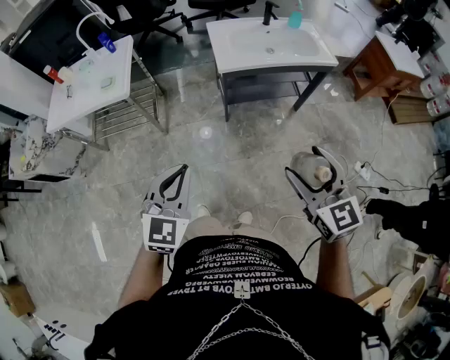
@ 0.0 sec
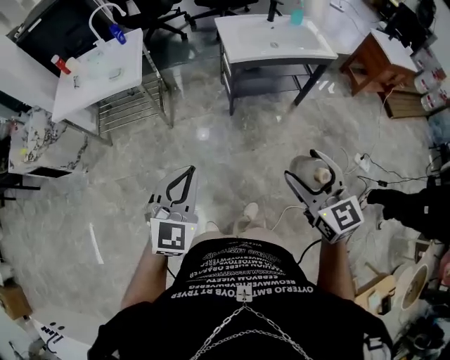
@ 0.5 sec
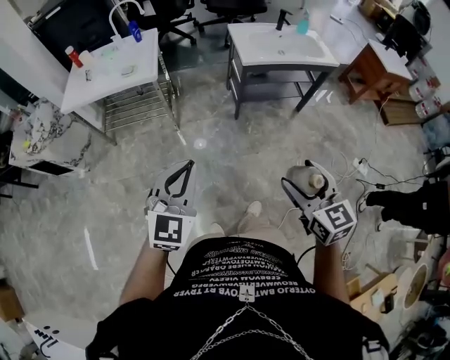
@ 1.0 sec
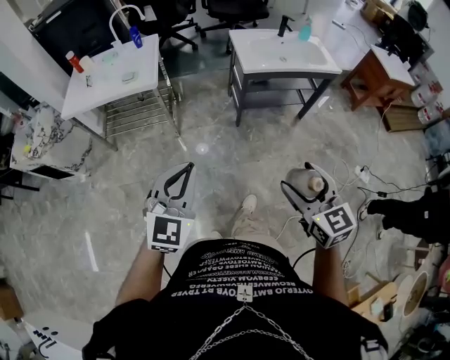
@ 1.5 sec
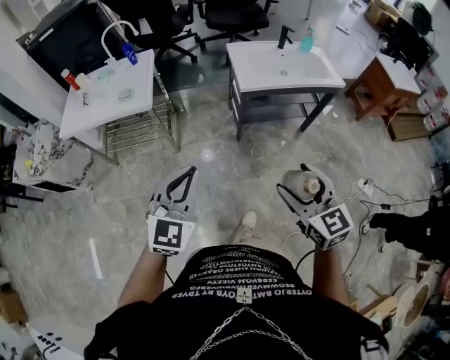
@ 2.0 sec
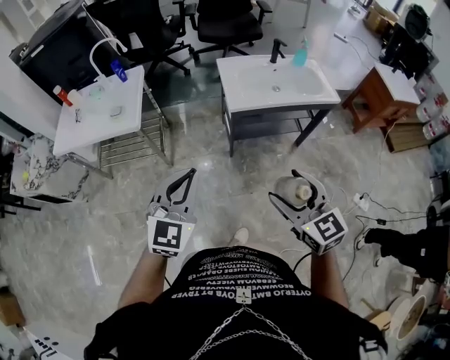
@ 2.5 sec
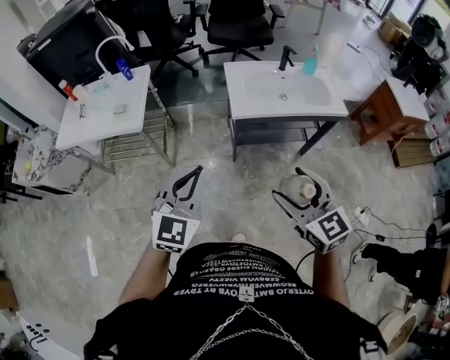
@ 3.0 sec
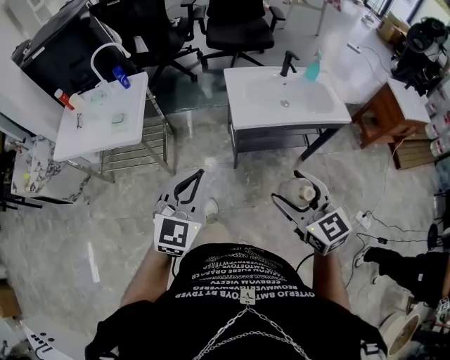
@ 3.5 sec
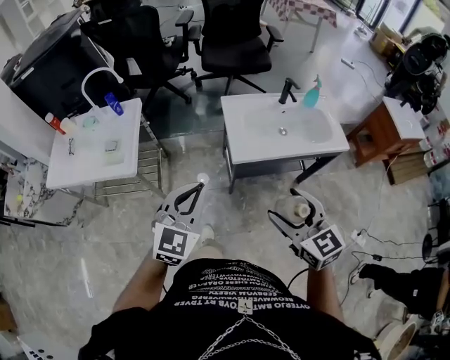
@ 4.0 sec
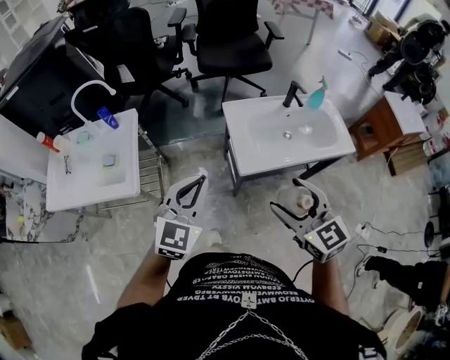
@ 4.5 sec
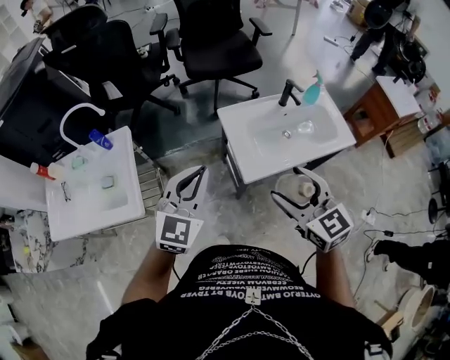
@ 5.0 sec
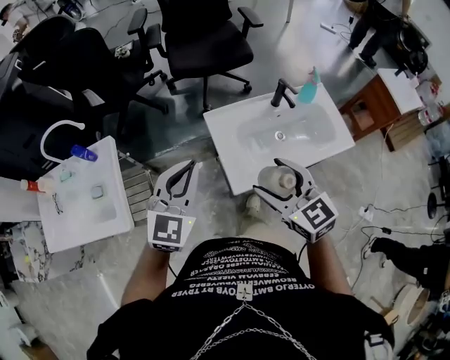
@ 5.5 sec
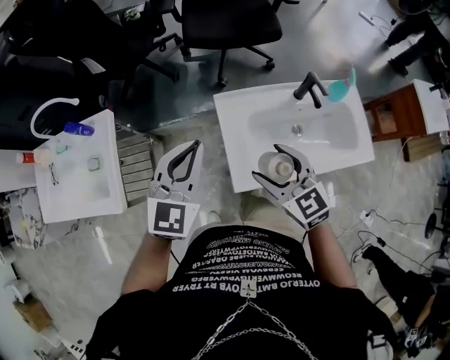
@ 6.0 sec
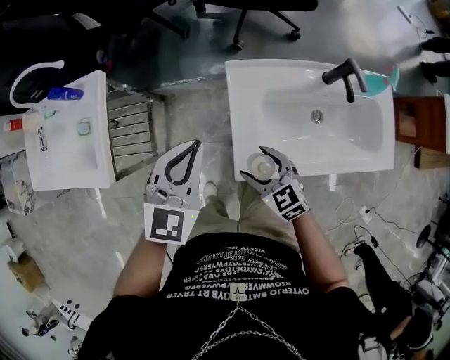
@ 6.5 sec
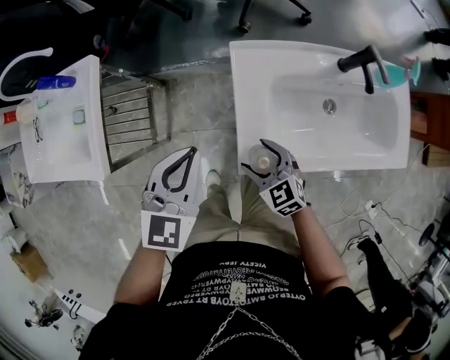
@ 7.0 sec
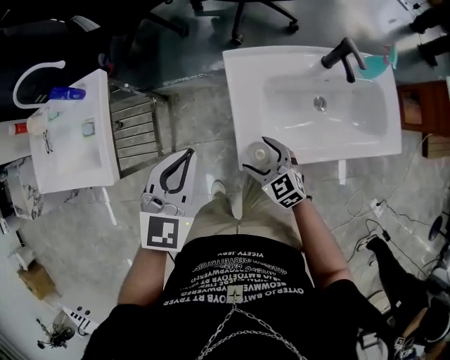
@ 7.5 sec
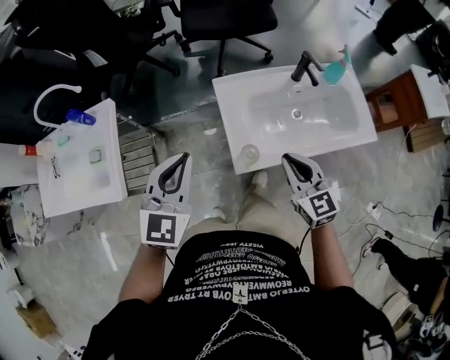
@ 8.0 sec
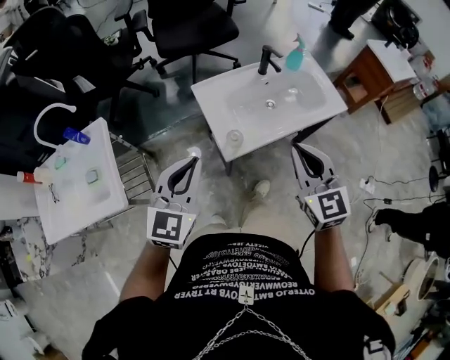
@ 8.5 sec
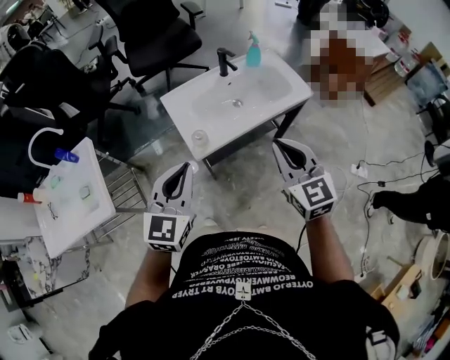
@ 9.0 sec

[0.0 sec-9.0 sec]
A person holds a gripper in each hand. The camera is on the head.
0.0 sec to 2.0 sec: The two grippers go some 10 cm to the left.
2.0 sec to 4.5 sec: The pair of grippers is taken forward, about 40 cm.
4.5 sec to 7.0 sec: The left gripper moves forward and downward, about 30 cm, and turns by about 20 degrees, while the right gripper shifts roughly 50 cm downward and forward, and rotates about 30 degrees.
7.0 sec to 9.0 sec: The right gripper heads upward, covering some 40 cm, swivels some 50 degrees, and closes its fingers; the left gripper shifts by some 35 cm, and rotates approximately 30 degrees.

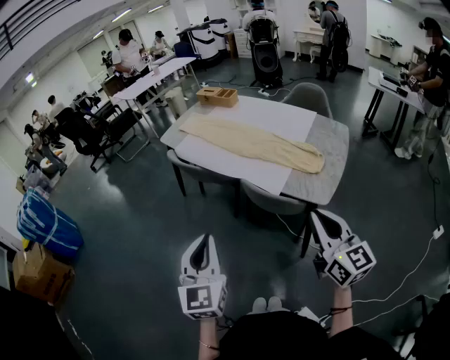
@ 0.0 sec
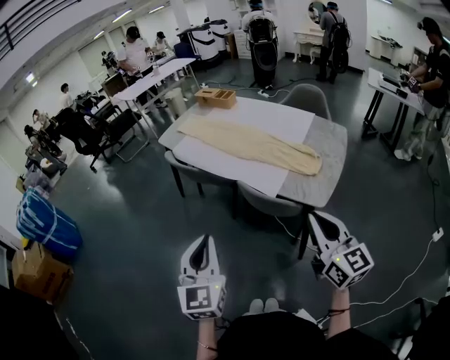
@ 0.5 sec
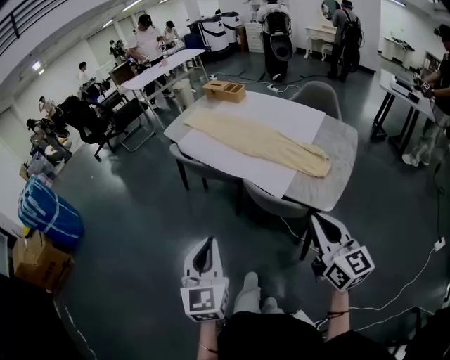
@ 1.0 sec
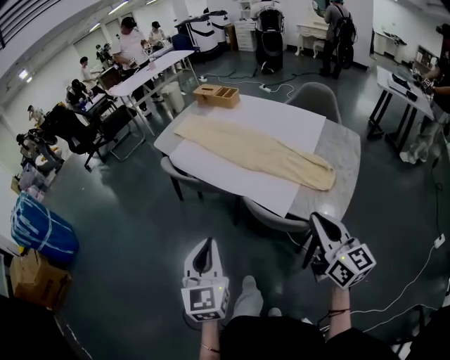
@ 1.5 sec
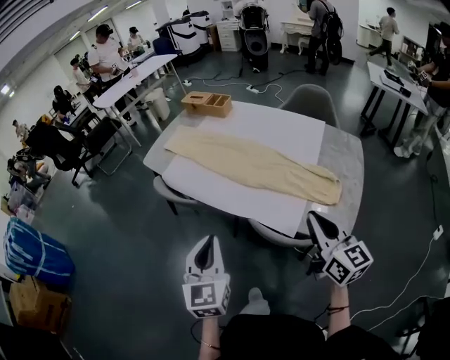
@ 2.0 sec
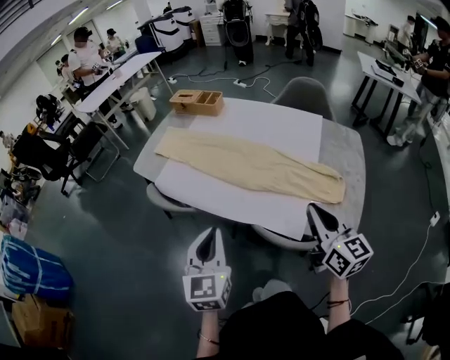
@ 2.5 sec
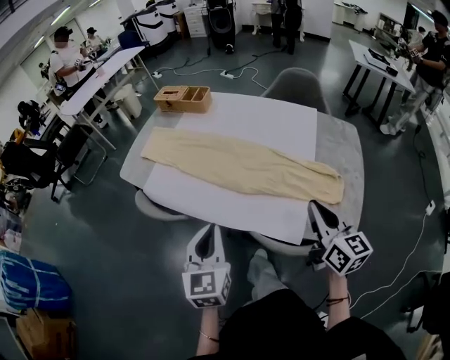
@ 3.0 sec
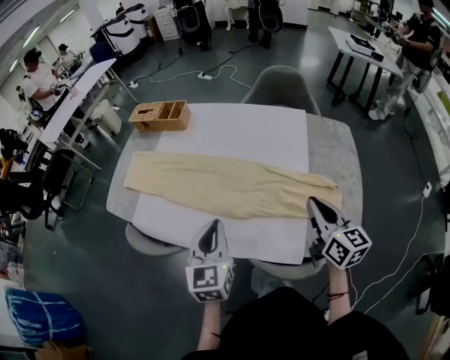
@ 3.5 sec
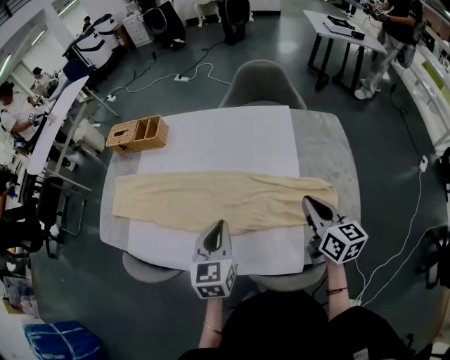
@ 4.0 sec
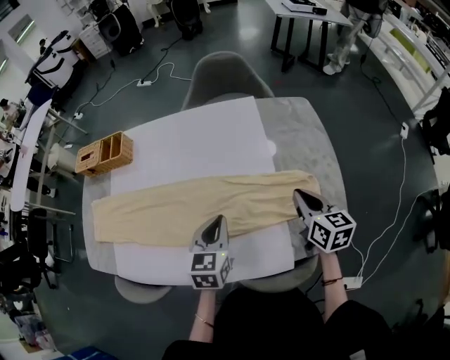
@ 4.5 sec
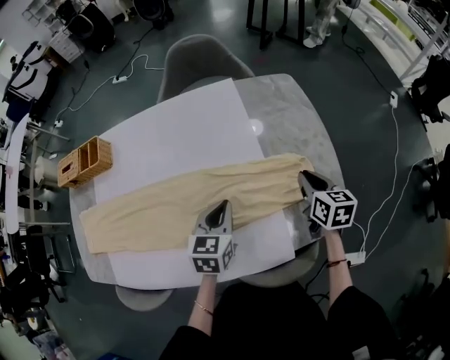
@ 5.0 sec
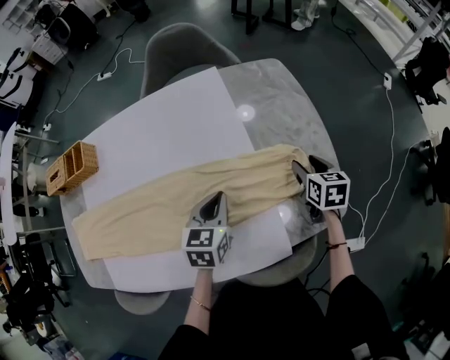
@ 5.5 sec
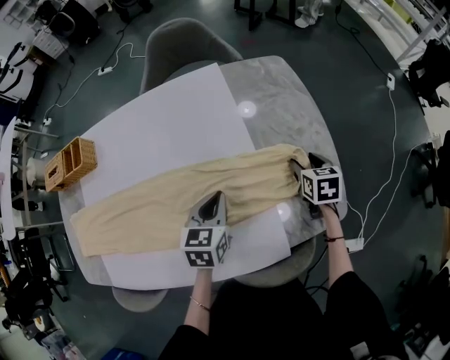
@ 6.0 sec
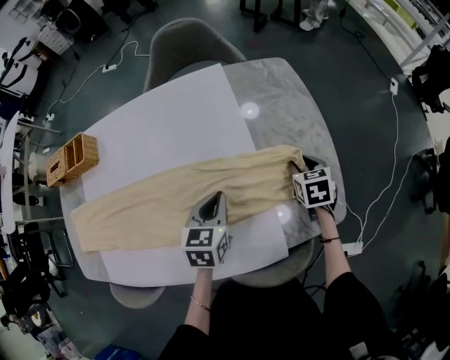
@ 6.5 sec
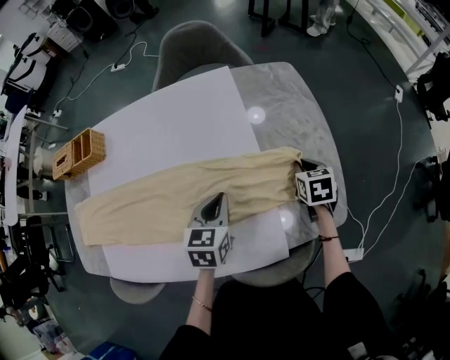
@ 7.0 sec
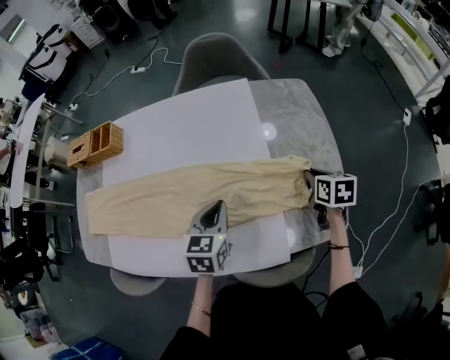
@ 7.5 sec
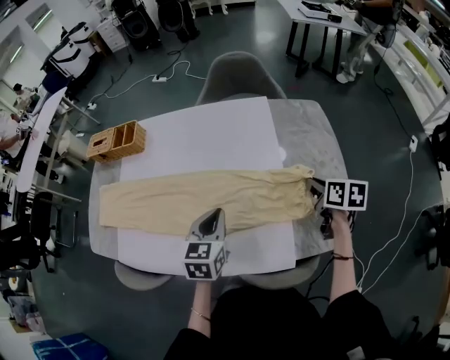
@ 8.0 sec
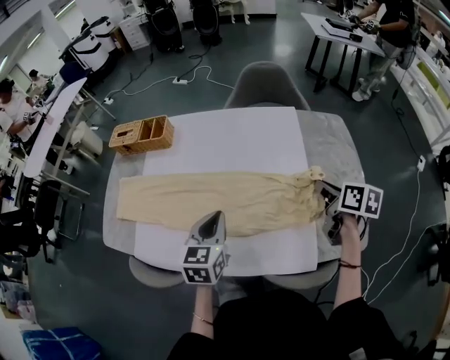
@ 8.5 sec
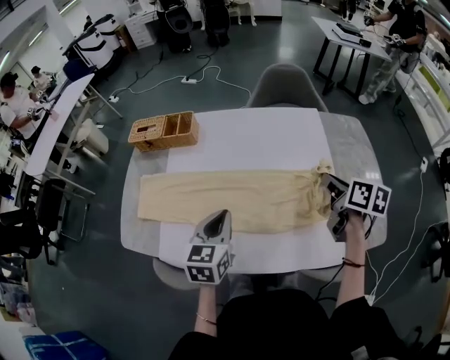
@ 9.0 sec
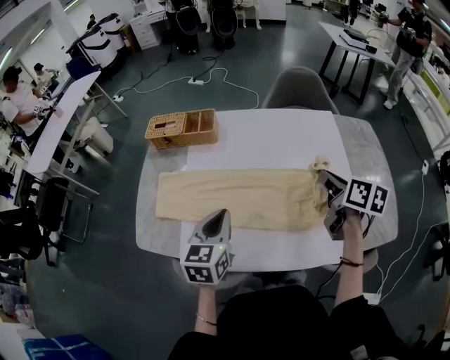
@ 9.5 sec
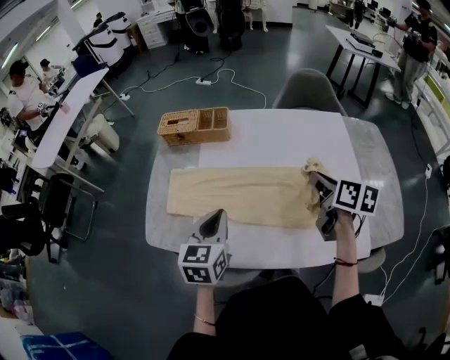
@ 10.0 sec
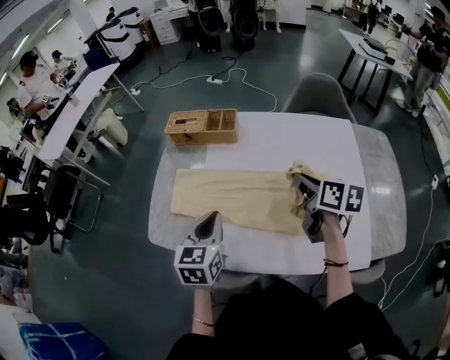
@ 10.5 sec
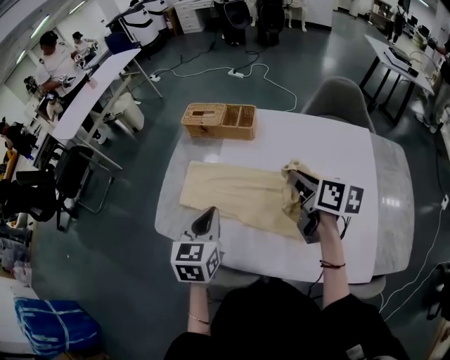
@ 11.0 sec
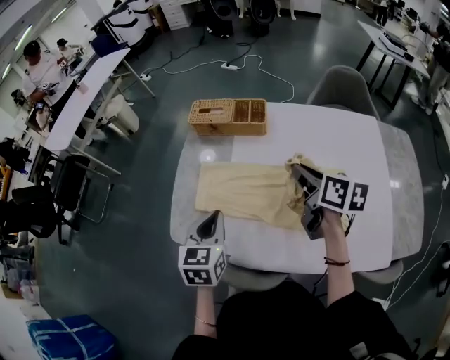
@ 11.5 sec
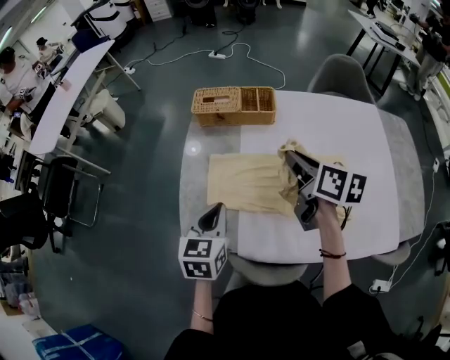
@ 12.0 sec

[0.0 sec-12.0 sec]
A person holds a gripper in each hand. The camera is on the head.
0.0 sec to 2.0 sec: Both grippers move forward, approximately 25 cm.
2.0 sec to 4.0 sec: The left gripper shifts by roughly 35 cm, and turns by some 30 degrees; the right gripper shifts by roughly 30 cm, and turns by approximately 30 degrees.
4.0 sec to 6.0 sec: The left gripper shifts by about 20 cm, and changes its angle by approximately 30 degrees, while the right gripper is displaced downward by roughly 20 cm, tilts its fingers roughly 40 degrees downward, and opens.
6.0 sec to 8.0 sec: The right gripper heads upward and to the left, covering approximately 15 cm, turns by approximately 20 degrees, and closes up, while the left gripper travels upward, to the left and backward by about 10 cm.
8.0 sec to 10.0 sec: The two grippers go approximately 35 cm to the left.
10.0 sec to 12.0 sec: The right gripper travels to the left and forward by approximately 25 cm; the left gripper travels to the left by roughly 20 cm.

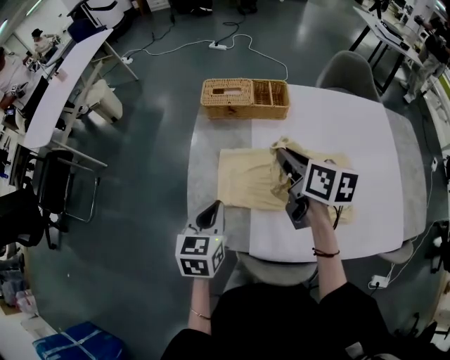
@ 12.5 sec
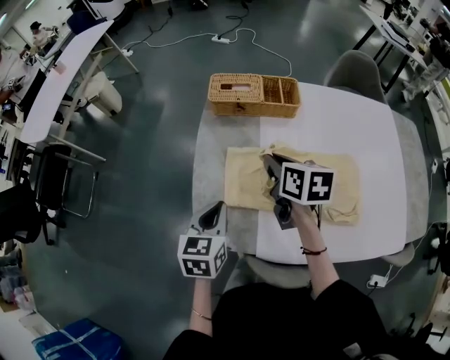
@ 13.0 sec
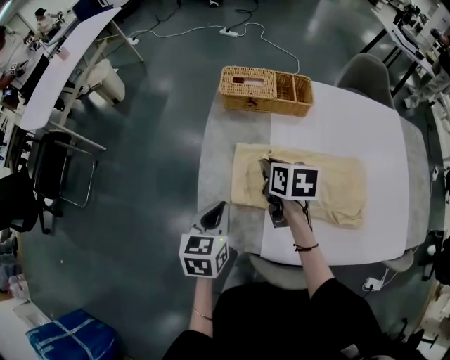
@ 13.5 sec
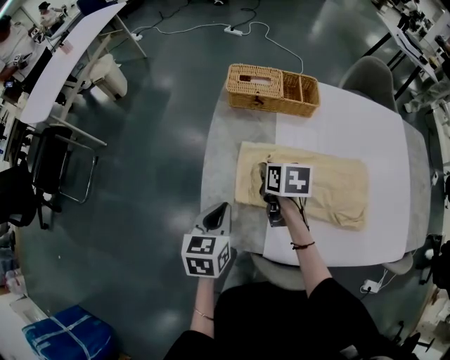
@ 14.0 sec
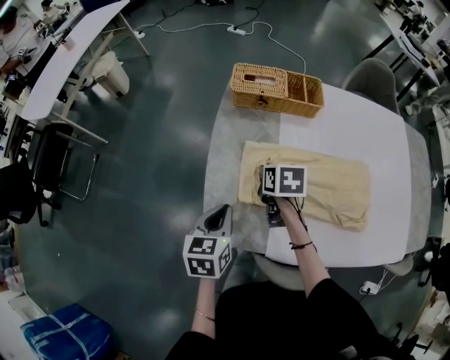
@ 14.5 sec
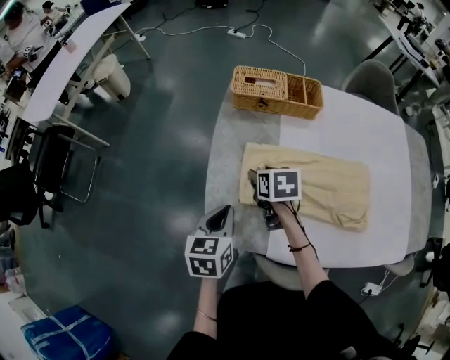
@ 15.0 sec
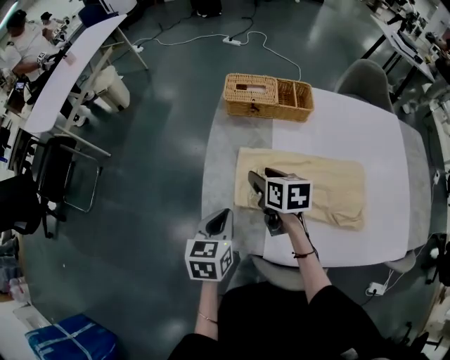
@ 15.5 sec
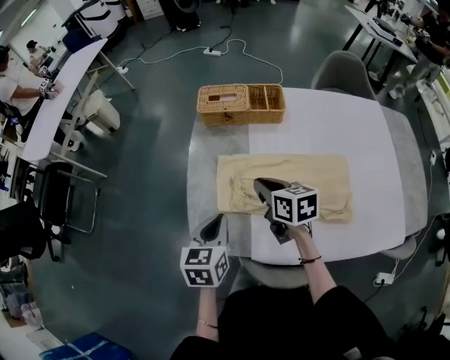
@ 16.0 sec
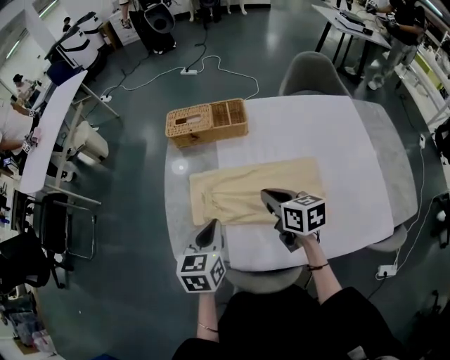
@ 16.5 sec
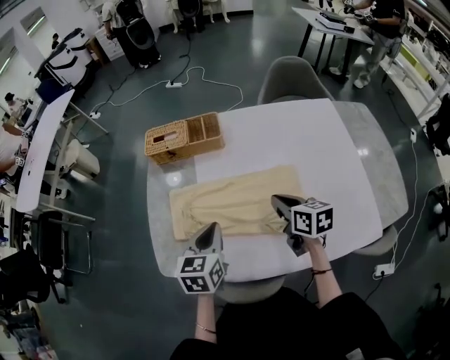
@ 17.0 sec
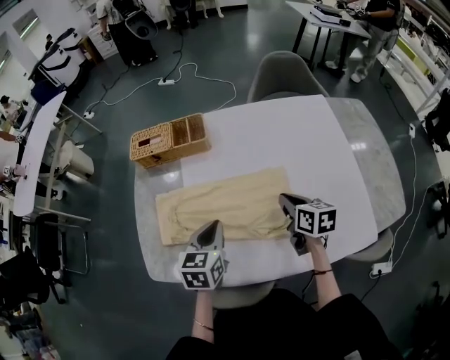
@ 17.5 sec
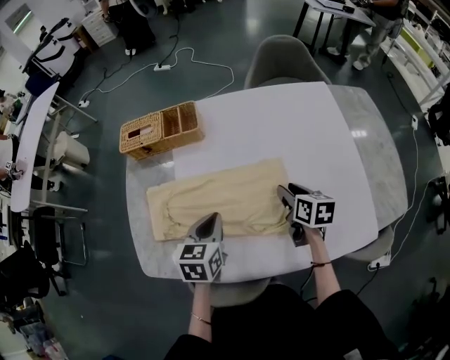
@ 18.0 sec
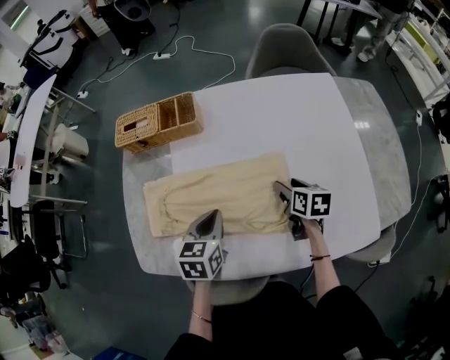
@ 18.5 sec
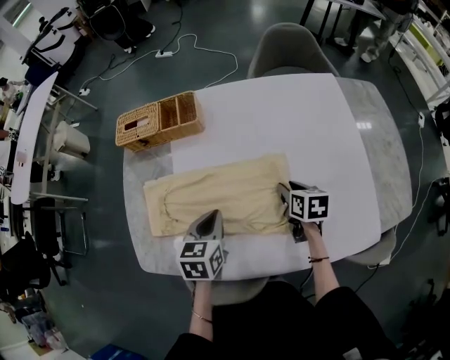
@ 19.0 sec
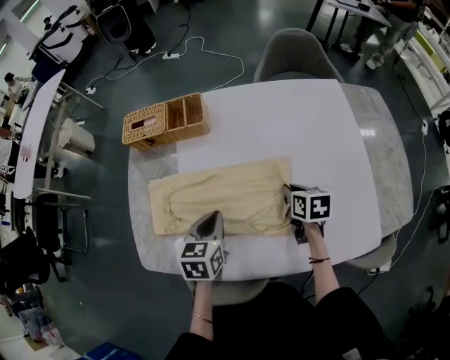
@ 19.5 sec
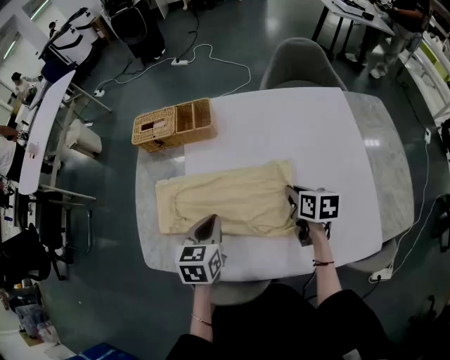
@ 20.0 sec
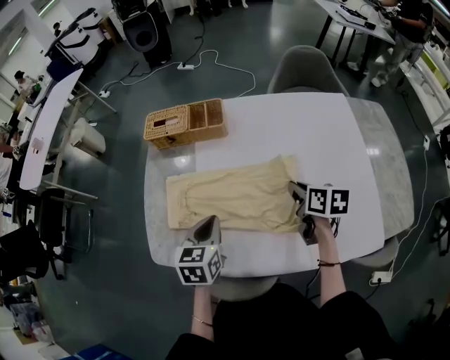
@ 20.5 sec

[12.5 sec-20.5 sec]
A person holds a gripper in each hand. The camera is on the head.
12.5 sec to 14.5 sec: The left gripper travels downward and to the left by about 10 cm. The right gripper goes approximately 20 cm downward and to the left, and turns by some 30 degrees.
14.5 sec to 16.5 sec: The right gripper shifts approximately 20 cm to the right, upward and backward, rotates approximately 30 degrees, and opens, then closes once more, while the left gripper shifts approximately 15 cm to the right and upward.
16.5 sec to 18.5 sec: The right gripper moves to the right and downward, some 25 cm, turns by some 30 degrees, and opens up, while the left gripper travels to the right by roughly 15 cm.
18.5 sec to 20.5 sec: The left gripper moves to the left, about 5 cm. Meanwhile the right gripper heads upward and to the left, covering about 10 cm, and closes its fingers.
